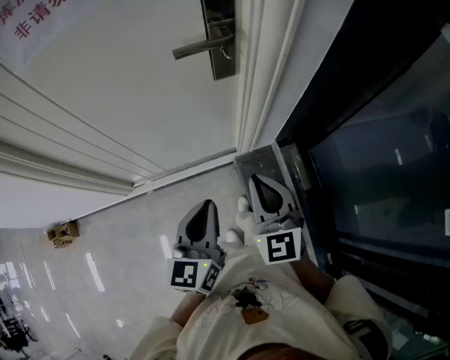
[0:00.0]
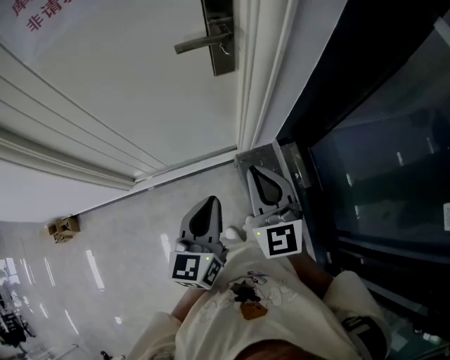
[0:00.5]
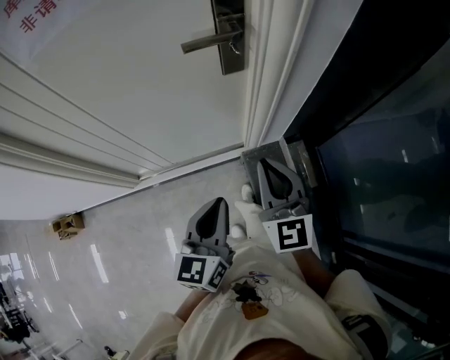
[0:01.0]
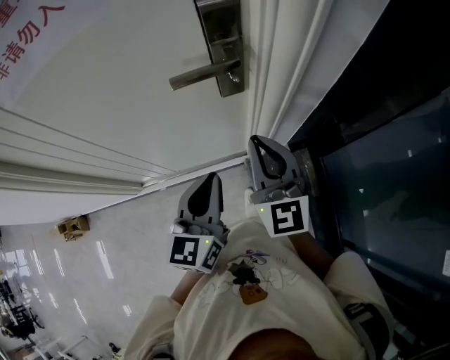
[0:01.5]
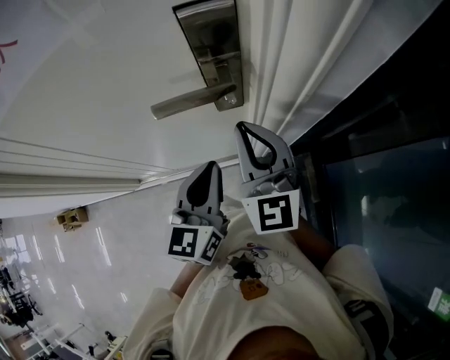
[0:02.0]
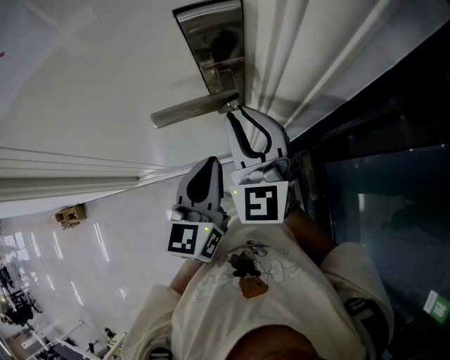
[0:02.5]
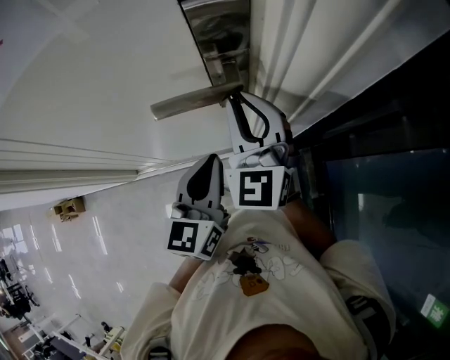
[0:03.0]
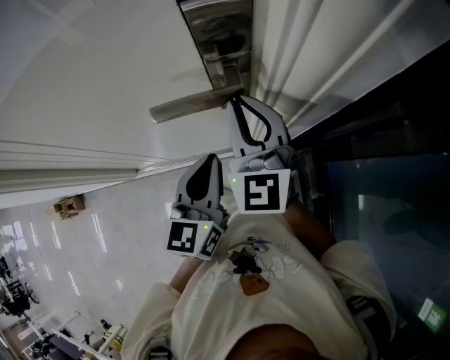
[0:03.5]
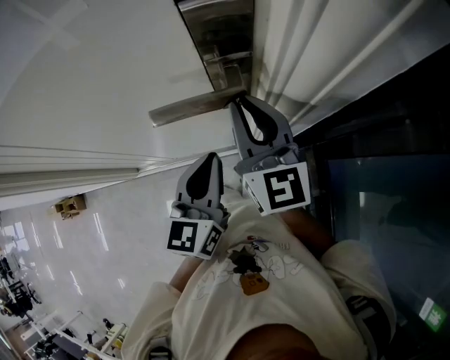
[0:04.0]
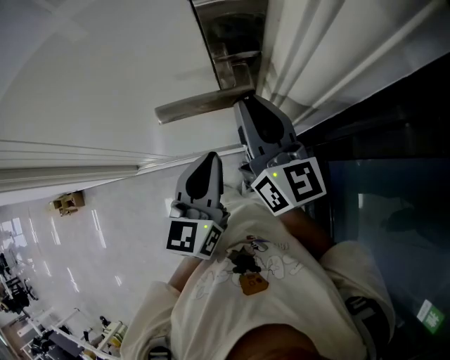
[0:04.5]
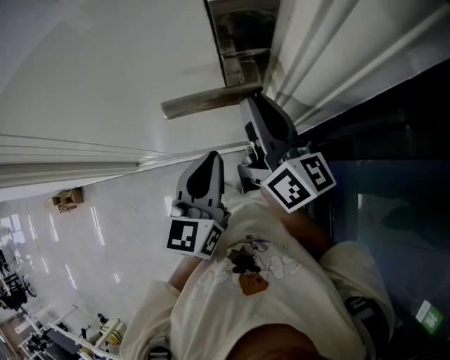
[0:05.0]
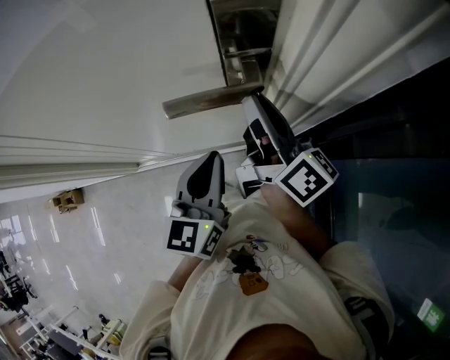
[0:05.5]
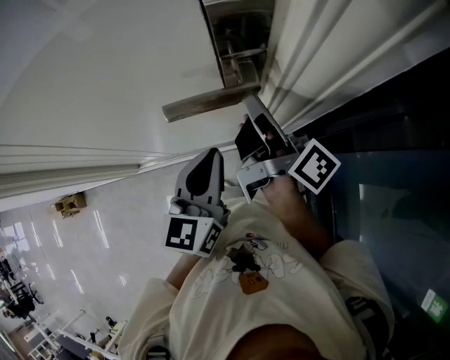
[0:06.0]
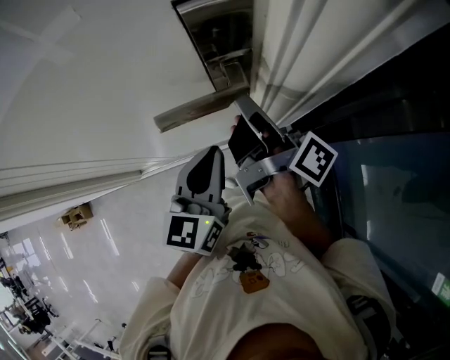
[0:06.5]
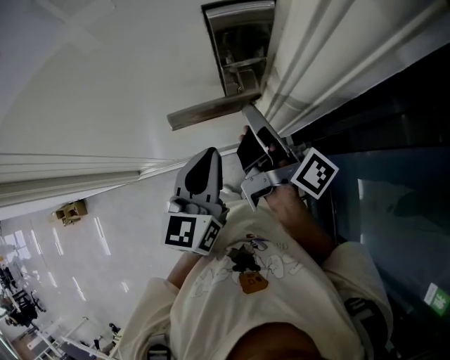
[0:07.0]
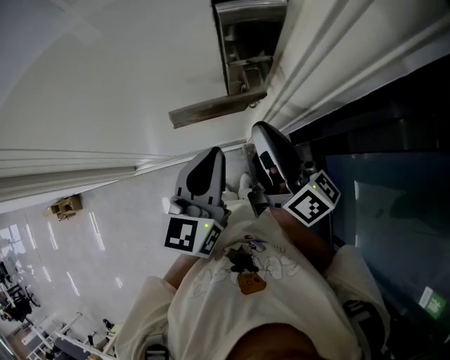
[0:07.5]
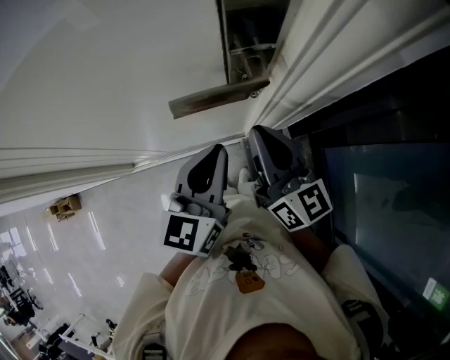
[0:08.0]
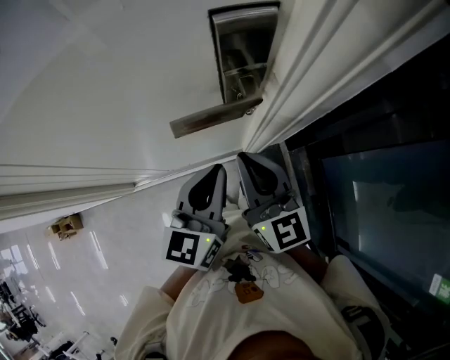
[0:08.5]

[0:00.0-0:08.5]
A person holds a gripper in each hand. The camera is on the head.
0:00.0 to 0:02.0: Both grippers move forward, some 25 cm.
0:02.0 to 0:04.0: The right gripper shifts some 5 cm forward.
0:04.0 to 0:06.5: The right gripper rolls clockwise, seen from behind, by approximately 80 degrees.
0:06.5 to 0:08.5: The right gripper goes approximately 10 cm backward, and rolls counterclockwise, seen from behind, by approximately 80 degrees.

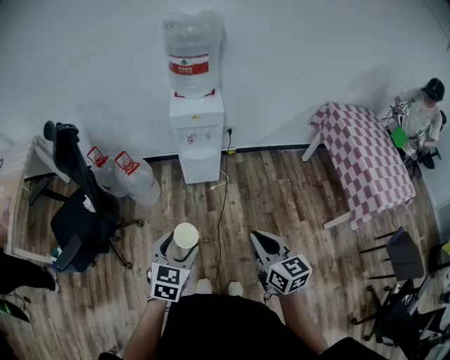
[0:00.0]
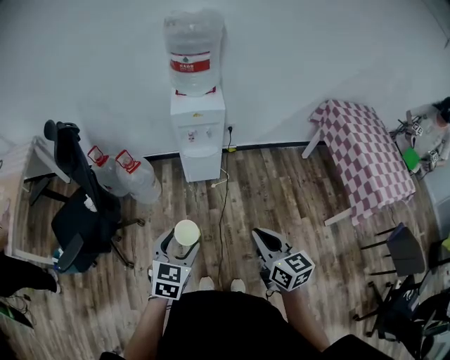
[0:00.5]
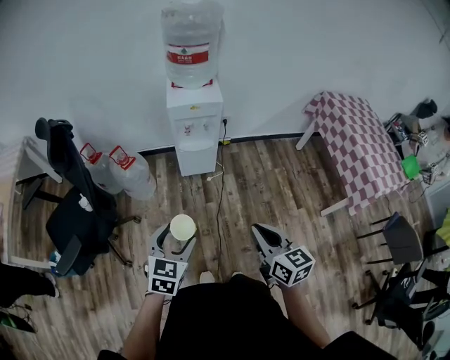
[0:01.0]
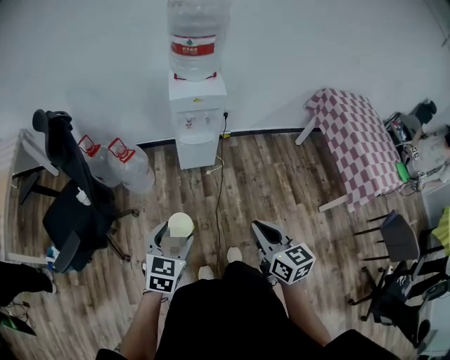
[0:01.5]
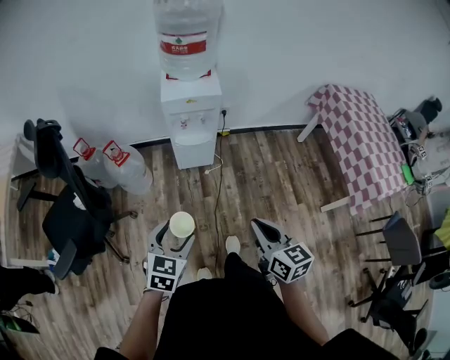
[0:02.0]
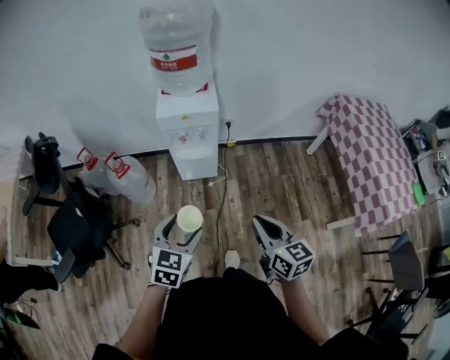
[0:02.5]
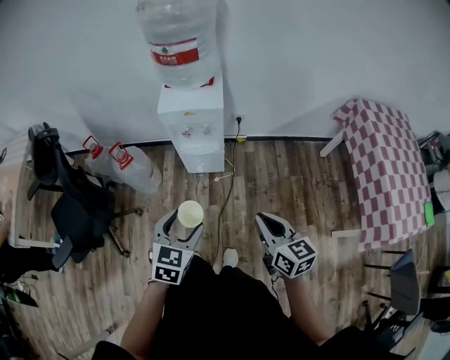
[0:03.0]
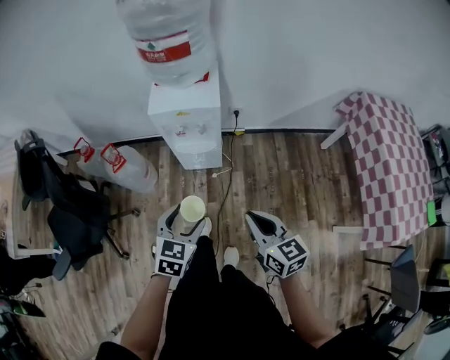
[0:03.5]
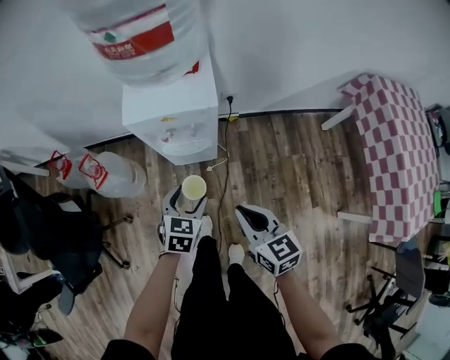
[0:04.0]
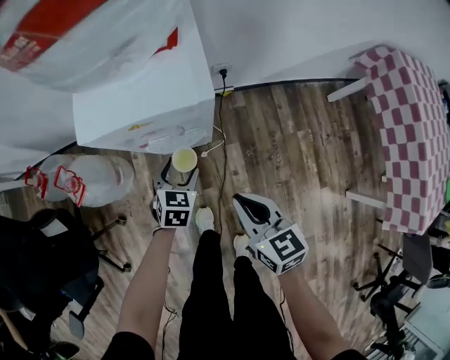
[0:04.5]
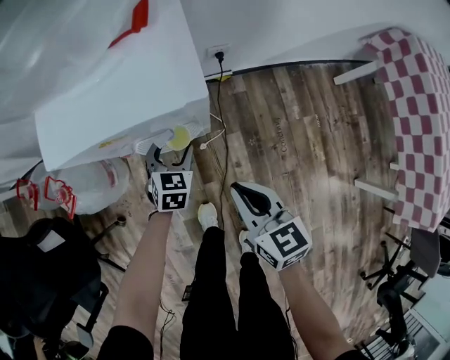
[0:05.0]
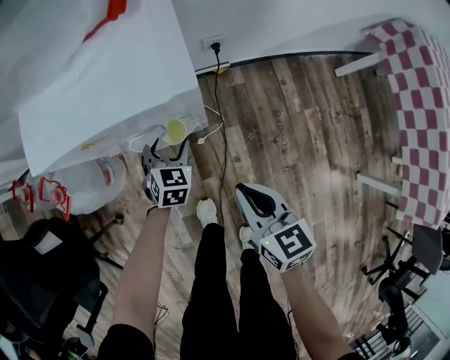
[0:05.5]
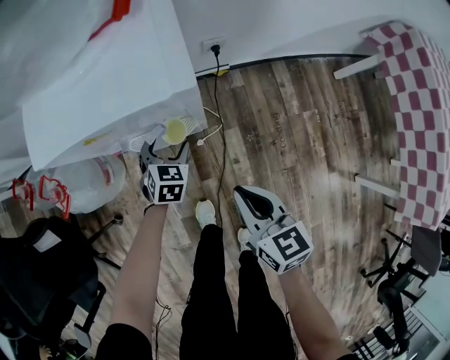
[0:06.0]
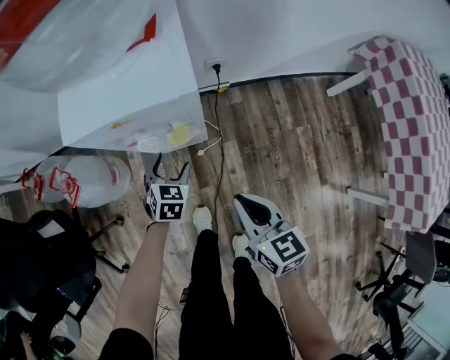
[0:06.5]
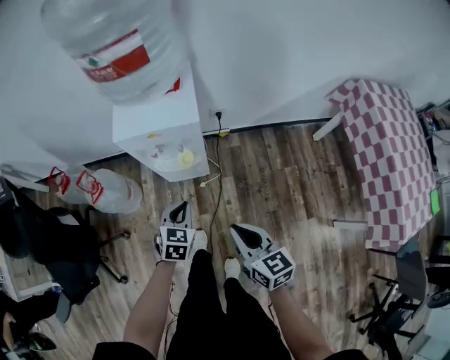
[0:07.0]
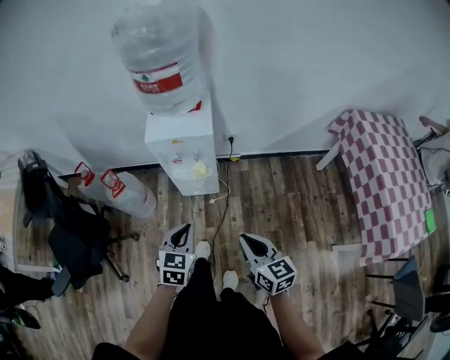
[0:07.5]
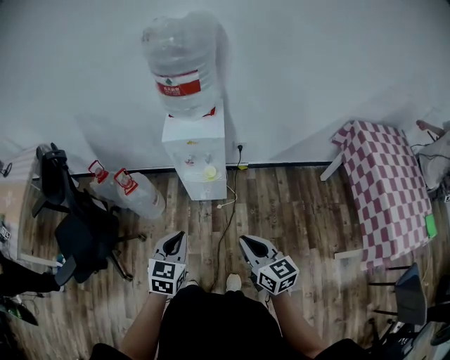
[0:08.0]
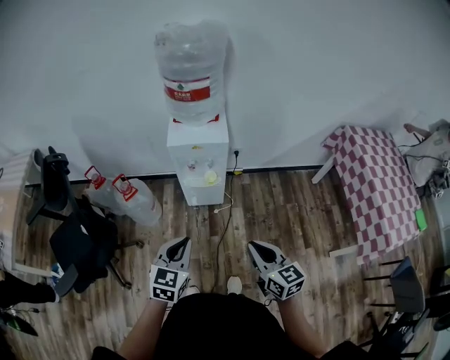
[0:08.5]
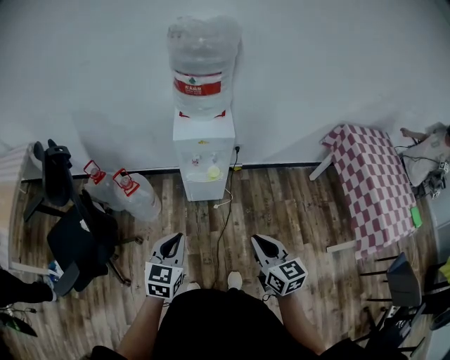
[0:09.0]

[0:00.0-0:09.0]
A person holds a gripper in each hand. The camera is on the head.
0:00.0 to 0:02.0: The right gripper shifts by approximately 5 cm; the left gripper moves forward, about 5 cm.
0:02.0 to 0:04.5: The grippers both shift forward and downward by roughly 50 cm.
0:04.5 to 0:07.0: The right gripper moves backward and upward, some 15 cm. Meanwhile the left gripper moves upward and backward, some 20 cm, and closes.
0:07.0 to 0:09.0: The left gripper shifts some 35 cm backward, upward and to the left. The right gripper heads backward, upward and to the left, covering some 20 cm.

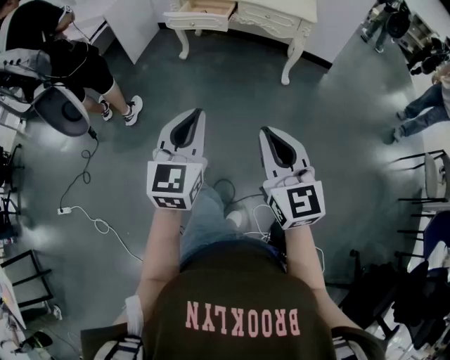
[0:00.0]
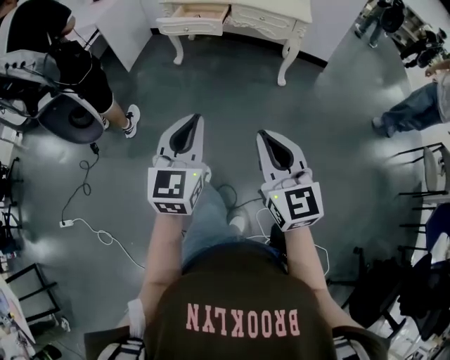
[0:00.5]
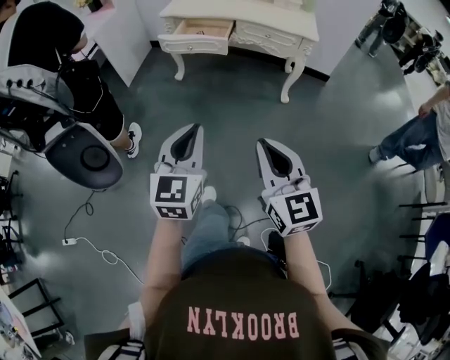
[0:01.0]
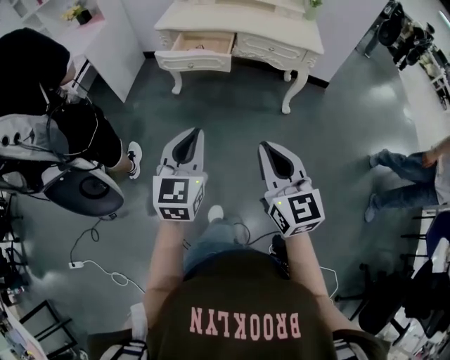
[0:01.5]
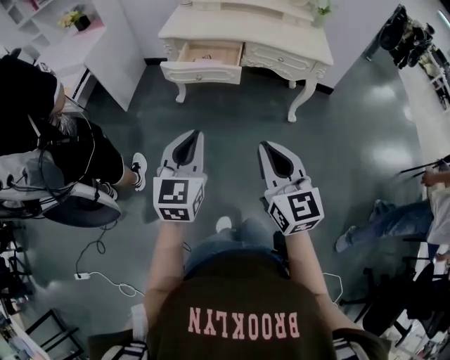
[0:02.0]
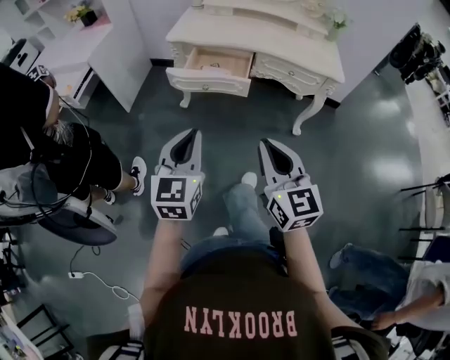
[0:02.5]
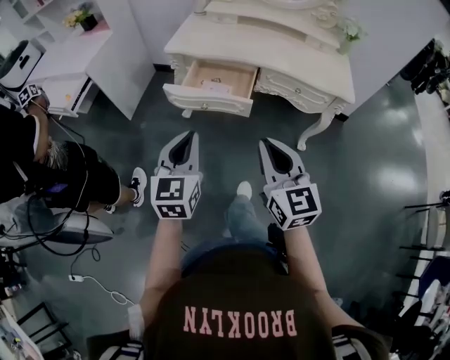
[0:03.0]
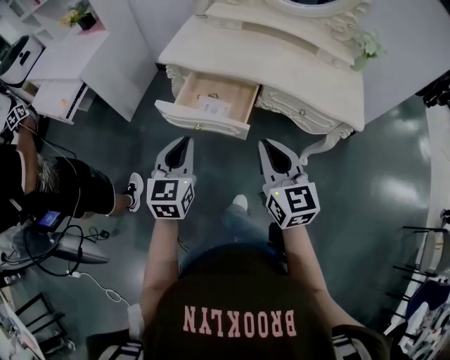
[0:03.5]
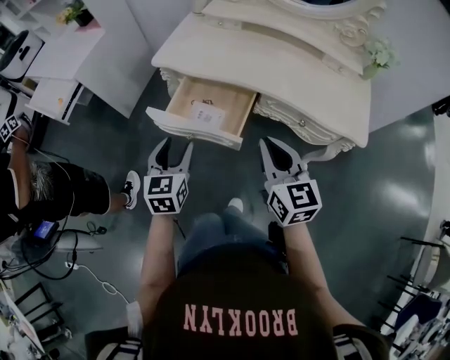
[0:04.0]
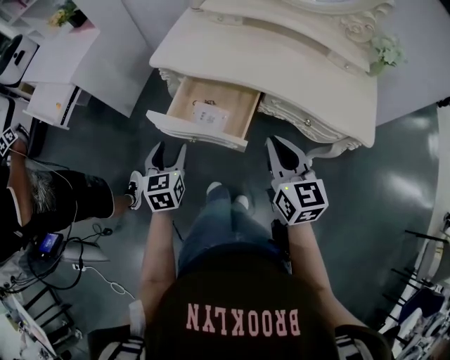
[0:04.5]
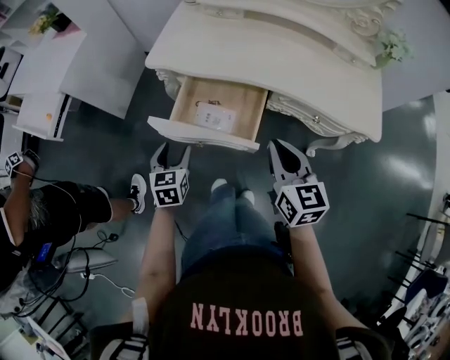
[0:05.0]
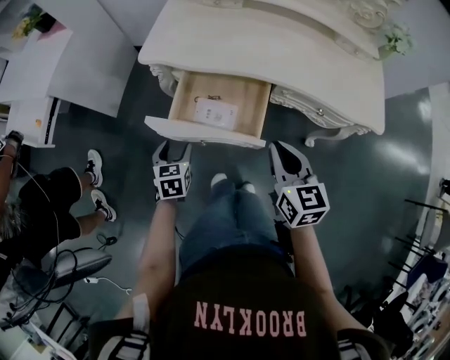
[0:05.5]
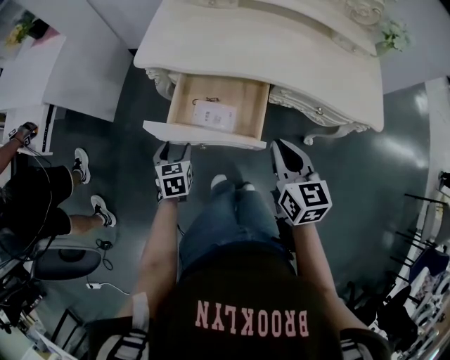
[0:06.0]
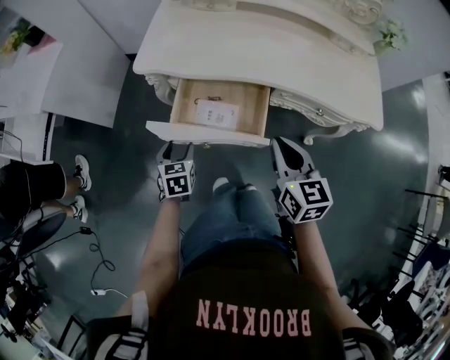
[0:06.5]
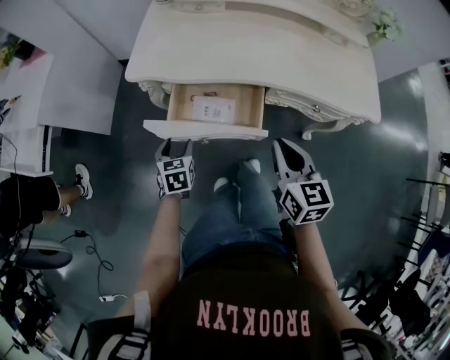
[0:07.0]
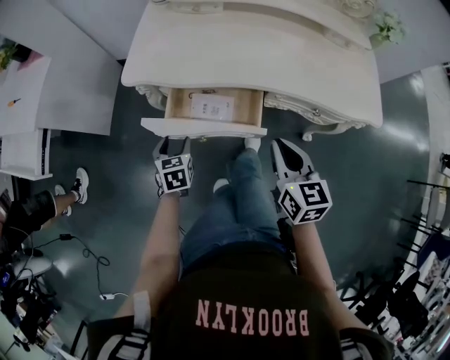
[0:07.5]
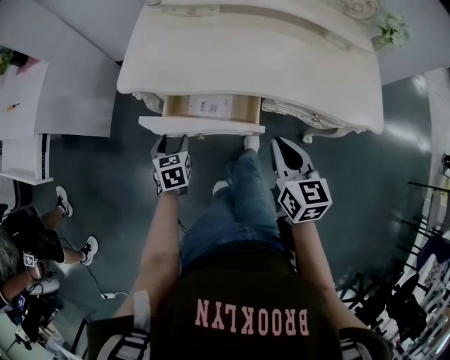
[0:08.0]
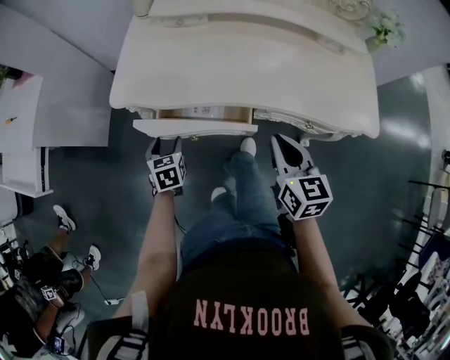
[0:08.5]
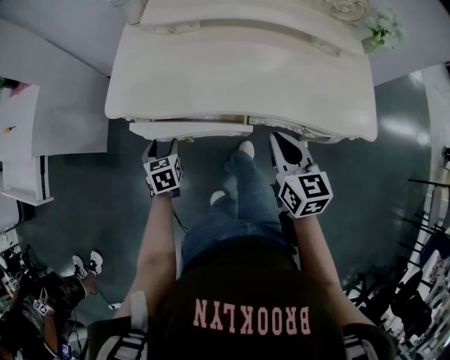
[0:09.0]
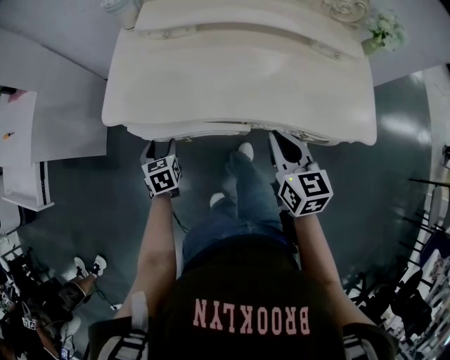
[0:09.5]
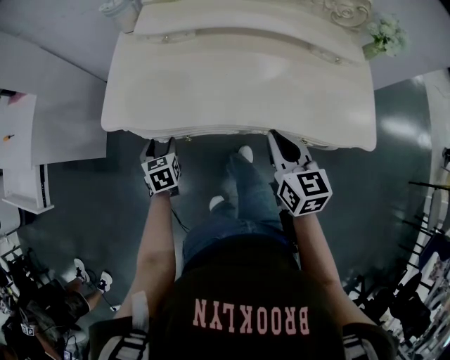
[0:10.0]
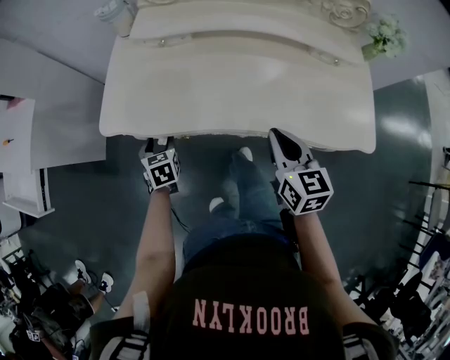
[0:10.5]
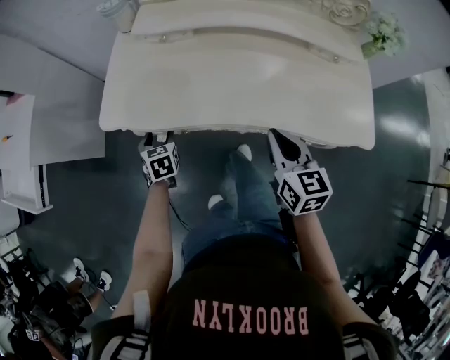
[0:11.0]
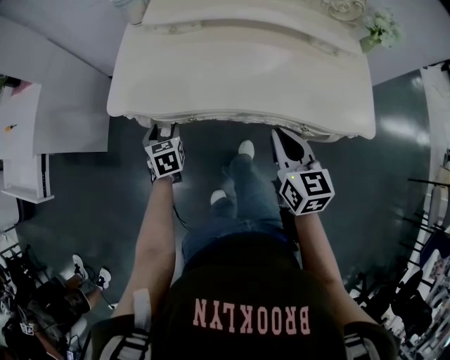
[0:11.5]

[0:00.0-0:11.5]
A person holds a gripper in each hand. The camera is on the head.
0:00.0 to 0:02.0: The right gripper goes roughly 35 cm forward, while the left gripper shifts approximately 40 cm forward and to the left.
0:02.0 to 0:04.0: Both grippers travel together forward, about 40 cm. The left gripper rotates some 20 degrees, and opens its fingers.
0:04.0 to 0:06.0: The right gripper moves downward and forward, about 10 cm. Meanwhile the left gripper is displaced downward, forward and to the left by approximately 25 cm, and turns by some 20 degrees.
0:06.0 to 0:07.5: The left gripper shifts about 5 cm forward.
0:07.5 to 0:09.5: The left gripper goes roughly 10 cm forward. The right gripper travels forward and to the right by about 15 cm.
0:09.5 to 0:11.5: The grippers make only small movements.
